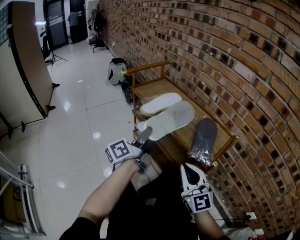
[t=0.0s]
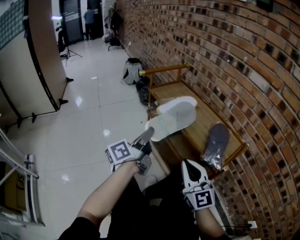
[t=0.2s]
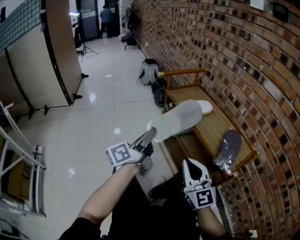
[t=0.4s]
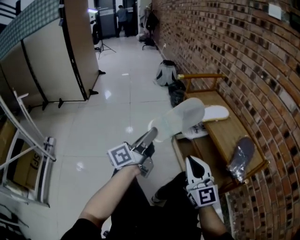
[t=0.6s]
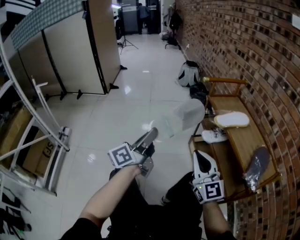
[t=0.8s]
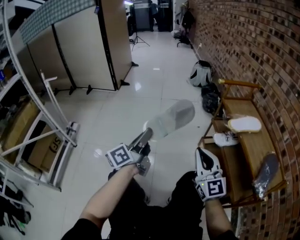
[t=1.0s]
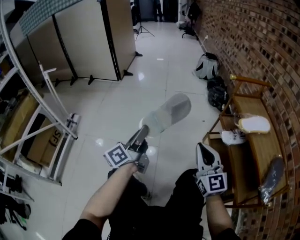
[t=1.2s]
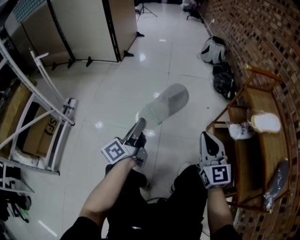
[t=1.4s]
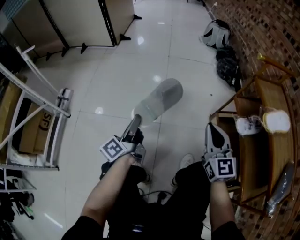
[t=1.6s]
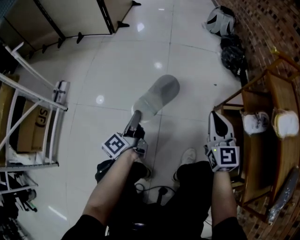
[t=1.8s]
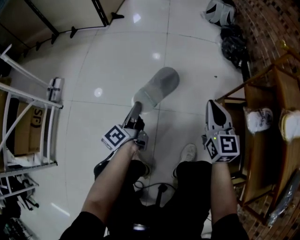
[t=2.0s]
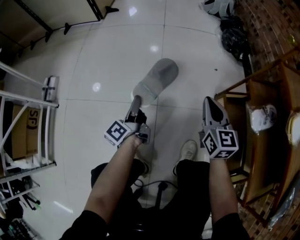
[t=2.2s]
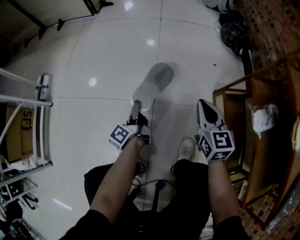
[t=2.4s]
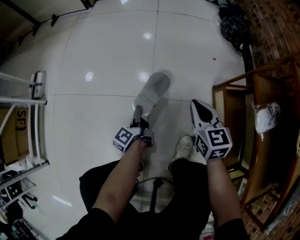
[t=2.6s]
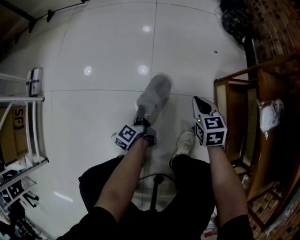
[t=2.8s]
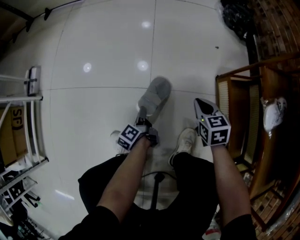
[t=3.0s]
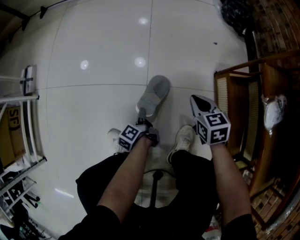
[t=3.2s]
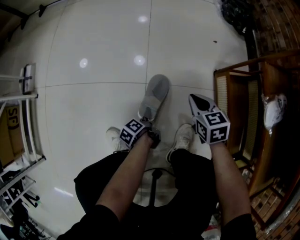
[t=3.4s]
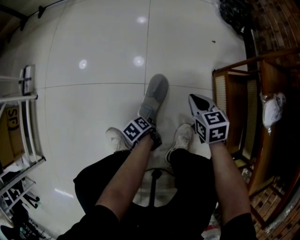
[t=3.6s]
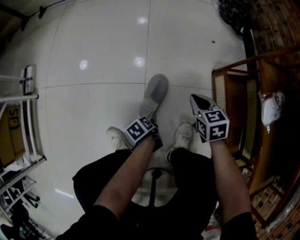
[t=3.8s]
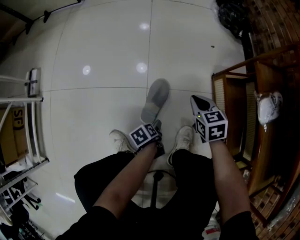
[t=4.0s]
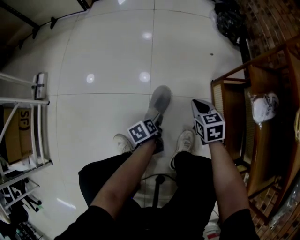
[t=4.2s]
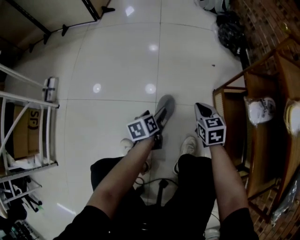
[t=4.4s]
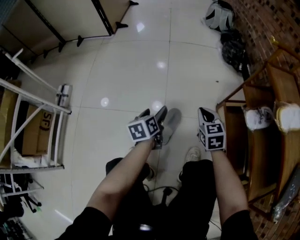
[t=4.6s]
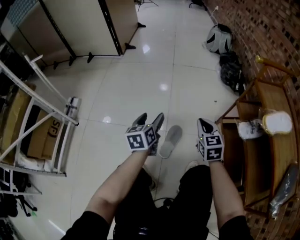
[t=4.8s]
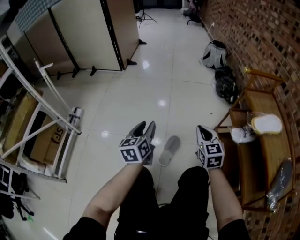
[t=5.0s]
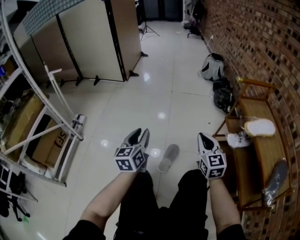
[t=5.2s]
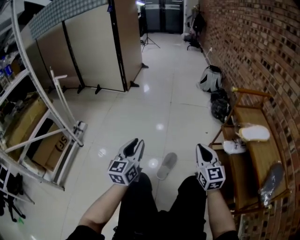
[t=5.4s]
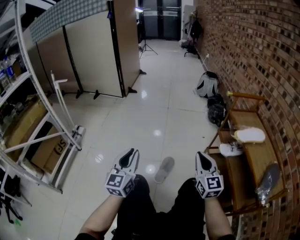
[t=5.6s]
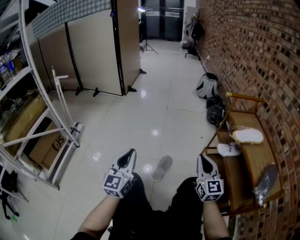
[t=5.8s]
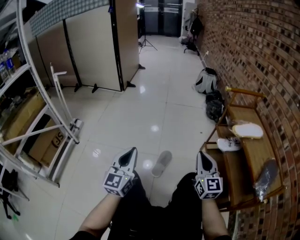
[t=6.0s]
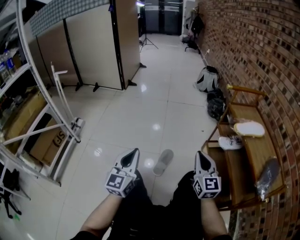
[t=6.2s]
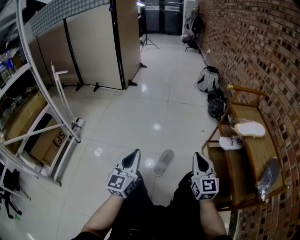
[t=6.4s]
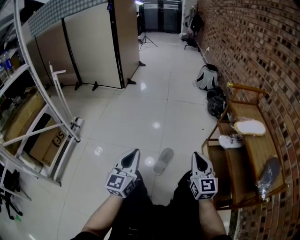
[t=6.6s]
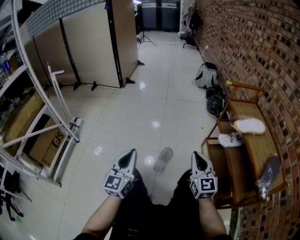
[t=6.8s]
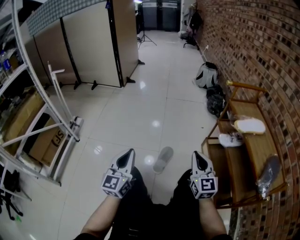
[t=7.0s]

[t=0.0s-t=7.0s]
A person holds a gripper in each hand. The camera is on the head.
t=0.0s to t=1.4s: The left gripper moves roughly 50 cm, and rotates about 40 degrees. Meanwhile the right gripper ends up some 35 cm from where it was, and rotates approximately 30 degrees.
t=1.4s to t=2.8s: The left gripper heads downward, covering approximately 40 cm, and tilts its fingers roughly 40 degrees downward, while the right gripper moves downward and forward, approximately 40 cm, and tilts its fingers roughly 40 degrees downward.
t=2.8s to t=4.2s: The left gripper travels to the right by roughly 5 cm, swivels about 40 degrees, and opens up.
t=4.2s to t=5.6s: The left gripper heads upward, covering some 50 cm, angles its fingers upward, by some 60 degrees, and closes its fingers. Meanwhile the right gripper shifts some 40 cm upward and backward, and tips its fingers upward by approximately 50 degrees.
t=5.6s to t=7.0s: The grippers move only a little.

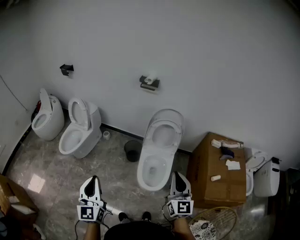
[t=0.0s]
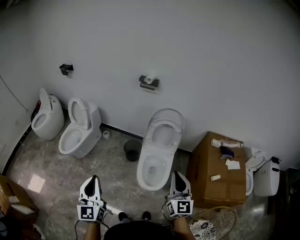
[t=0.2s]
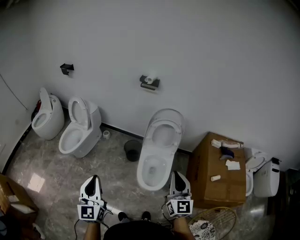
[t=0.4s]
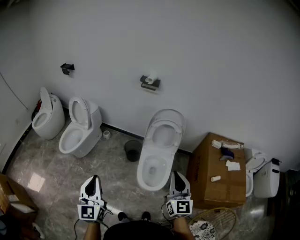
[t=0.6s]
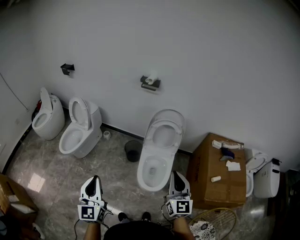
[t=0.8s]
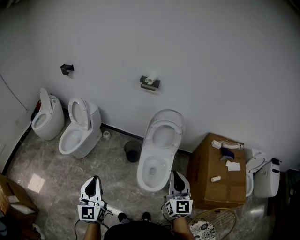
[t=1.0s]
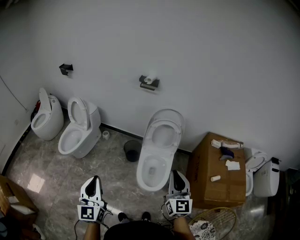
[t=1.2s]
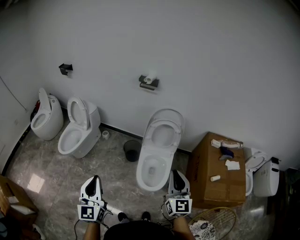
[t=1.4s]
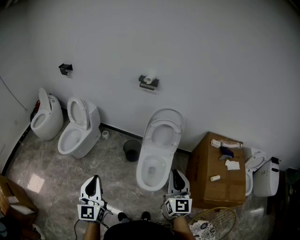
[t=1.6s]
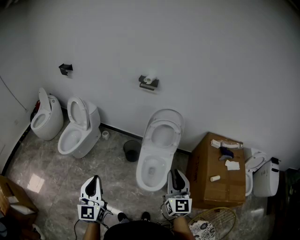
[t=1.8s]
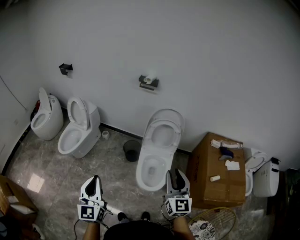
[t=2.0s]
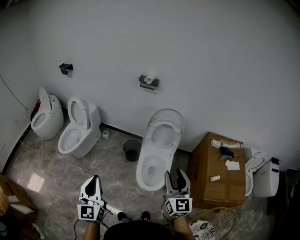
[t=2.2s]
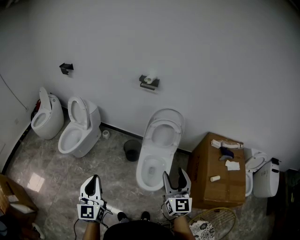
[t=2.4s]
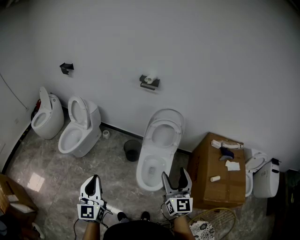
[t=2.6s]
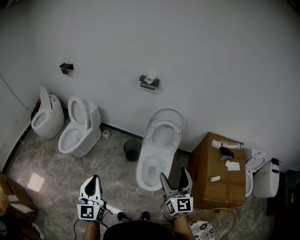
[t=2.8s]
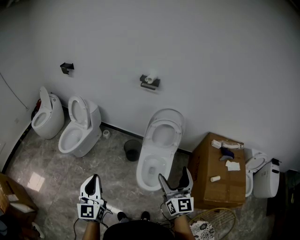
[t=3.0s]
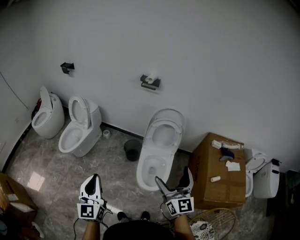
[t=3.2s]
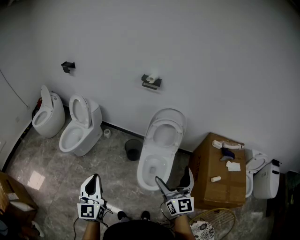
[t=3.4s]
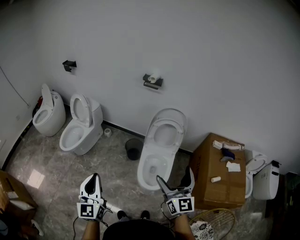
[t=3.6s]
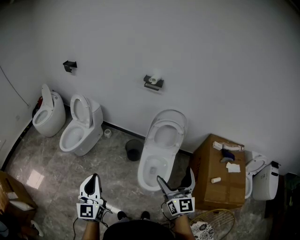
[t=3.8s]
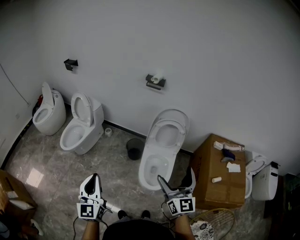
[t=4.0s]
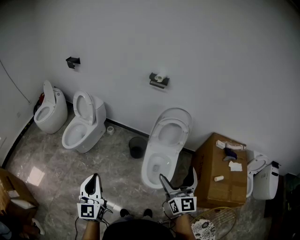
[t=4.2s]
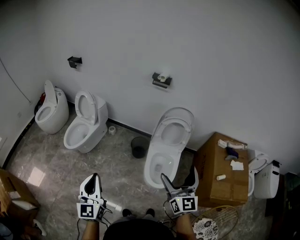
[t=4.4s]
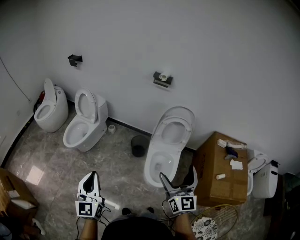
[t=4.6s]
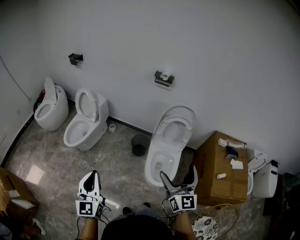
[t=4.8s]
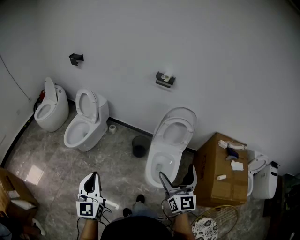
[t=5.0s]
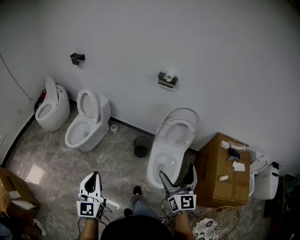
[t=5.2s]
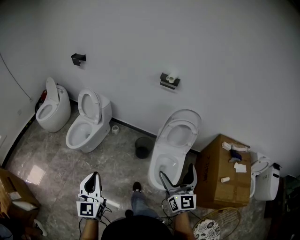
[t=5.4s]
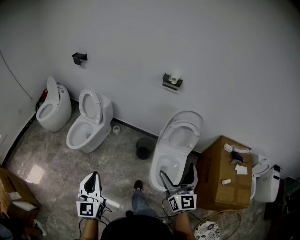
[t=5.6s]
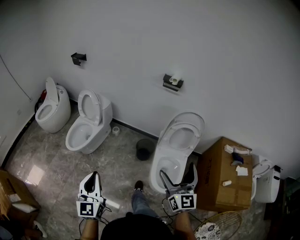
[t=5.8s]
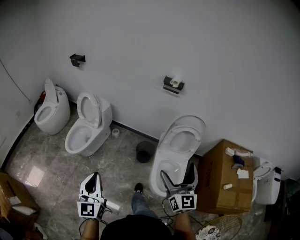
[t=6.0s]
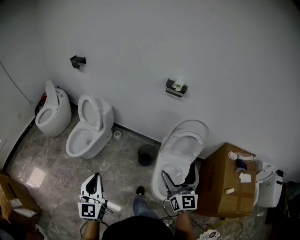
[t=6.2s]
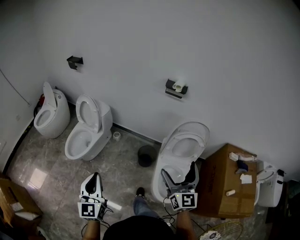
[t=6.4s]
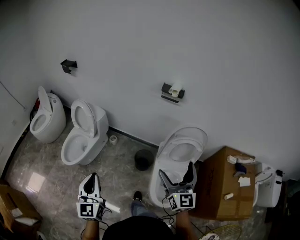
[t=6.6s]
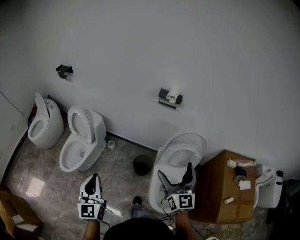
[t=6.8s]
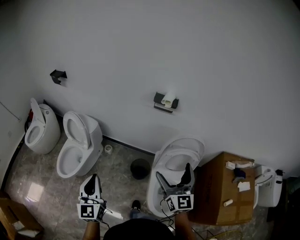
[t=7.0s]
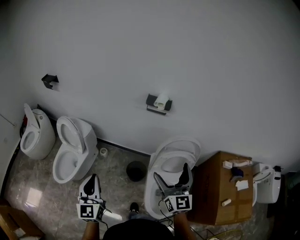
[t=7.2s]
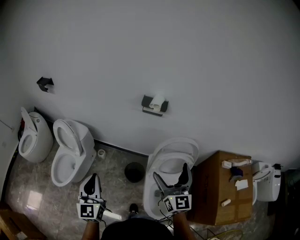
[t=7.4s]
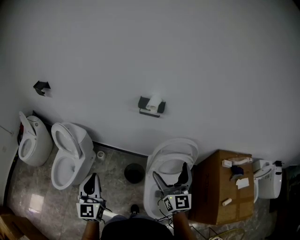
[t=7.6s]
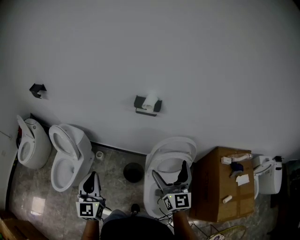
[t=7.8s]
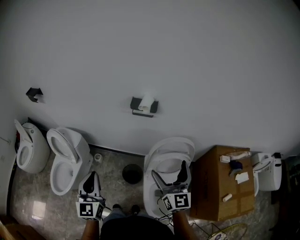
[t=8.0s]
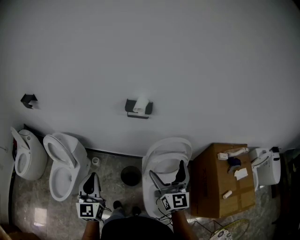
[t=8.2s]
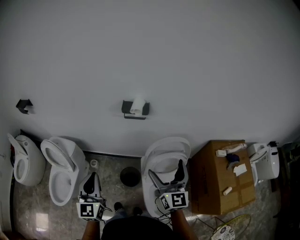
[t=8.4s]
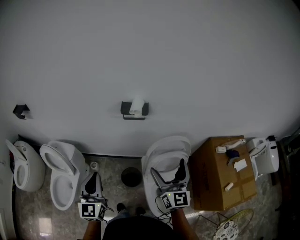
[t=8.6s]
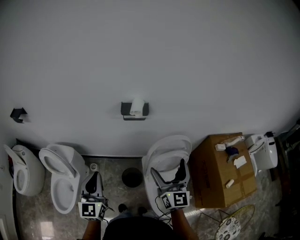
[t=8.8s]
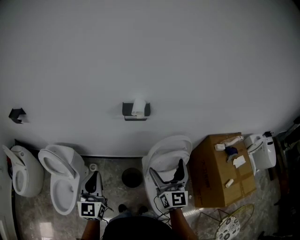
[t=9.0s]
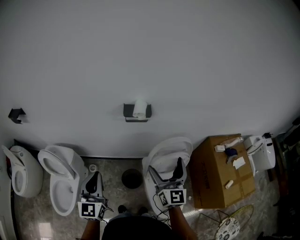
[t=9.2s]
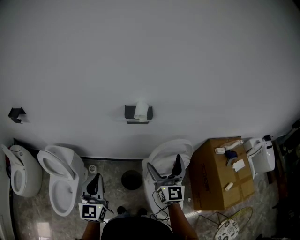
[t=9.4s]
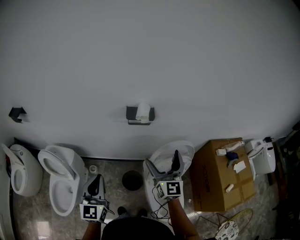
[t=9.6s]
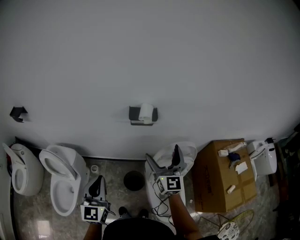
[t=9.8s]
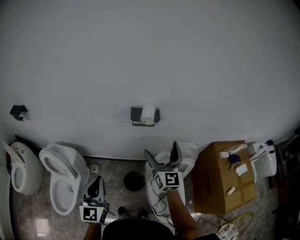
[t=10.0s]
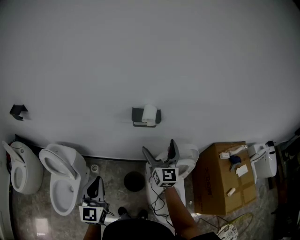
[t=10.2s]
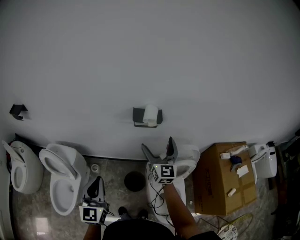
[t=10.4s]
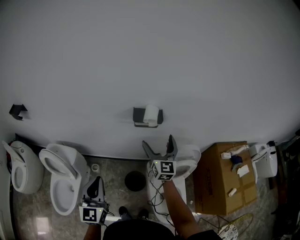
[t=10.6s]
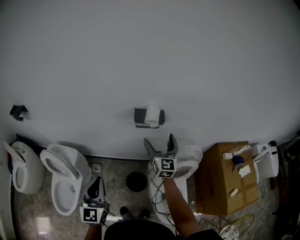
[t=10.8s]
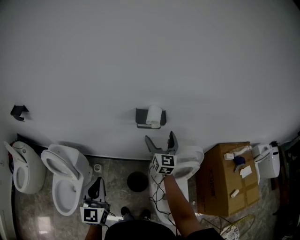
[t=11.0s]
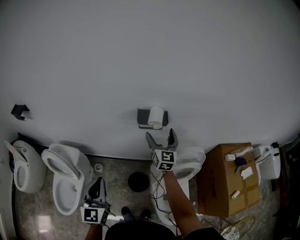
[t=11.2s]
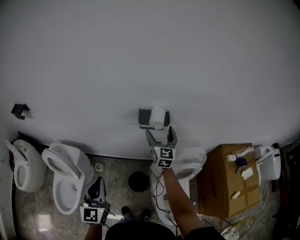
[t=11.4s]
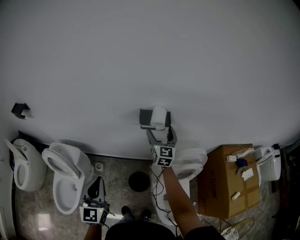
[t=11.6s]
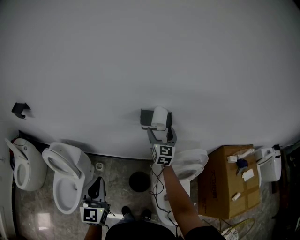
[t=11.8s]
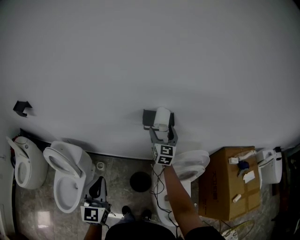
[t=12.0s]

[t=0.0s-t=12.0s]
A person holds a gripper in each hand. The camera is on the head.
t=0.0s to t=1.6s: There are only small adjustments of the grippers.
t=1.6s to t=3.0s: The right gripper opens.
t=3.0s to t=4.4s: Both grippers move to the left, about 10 cm.
t=4.4s to t=6.0s: Both grippers travel together forward and to the left, roughly 15 cm.
t=6.0s to t=7.6s: The two grippers go some 30 cm forward.
t=7.6s to t=9.0s: The left gripper heads forward, covering roughly 15 cm. The right gripper heads forward, covering roughly 5 cm.
t=9.0s to t=10.4s: The right gripper heads forward and to the left, covering some 20 cm.
t=10.4s to t=12.0s: The right gripper moves forward and downward, roughly 15 cm.

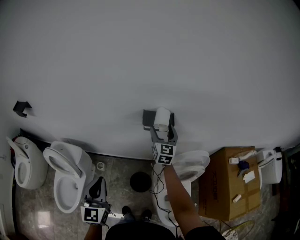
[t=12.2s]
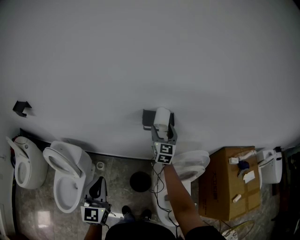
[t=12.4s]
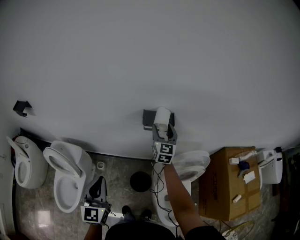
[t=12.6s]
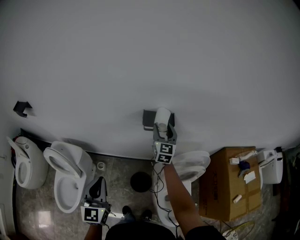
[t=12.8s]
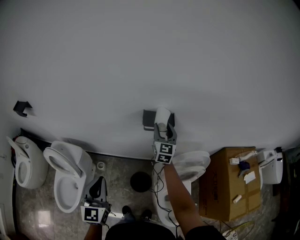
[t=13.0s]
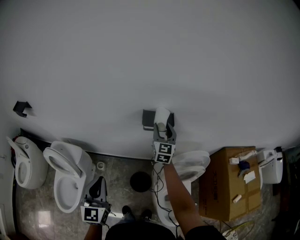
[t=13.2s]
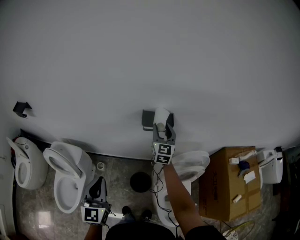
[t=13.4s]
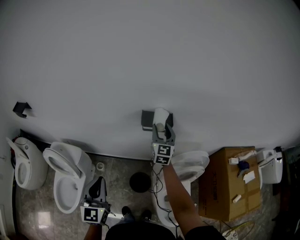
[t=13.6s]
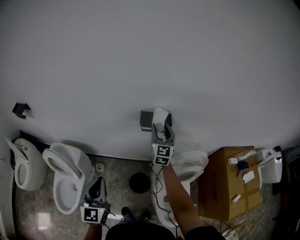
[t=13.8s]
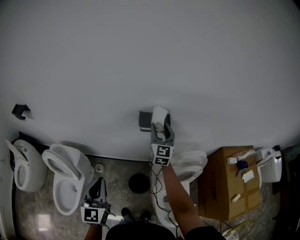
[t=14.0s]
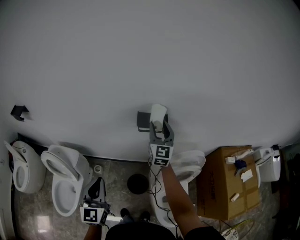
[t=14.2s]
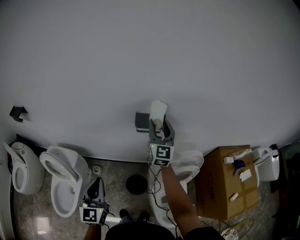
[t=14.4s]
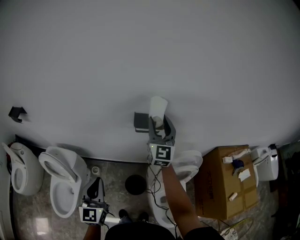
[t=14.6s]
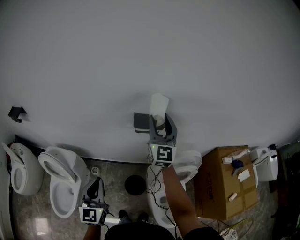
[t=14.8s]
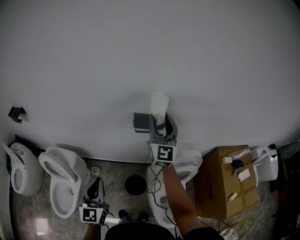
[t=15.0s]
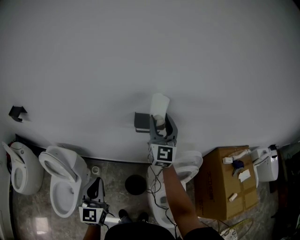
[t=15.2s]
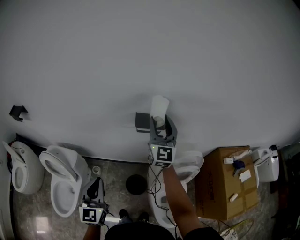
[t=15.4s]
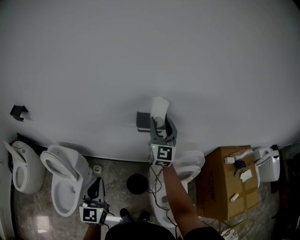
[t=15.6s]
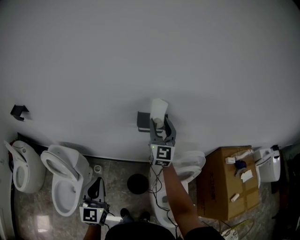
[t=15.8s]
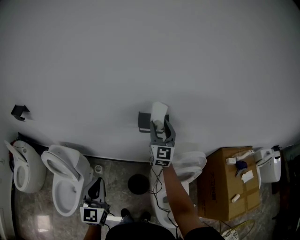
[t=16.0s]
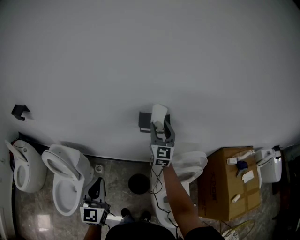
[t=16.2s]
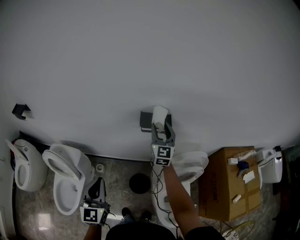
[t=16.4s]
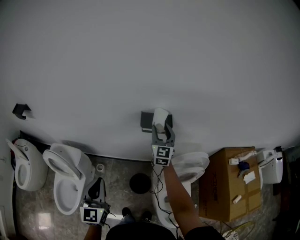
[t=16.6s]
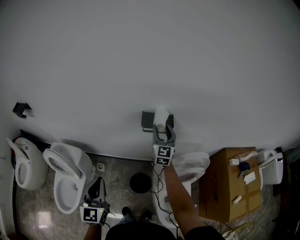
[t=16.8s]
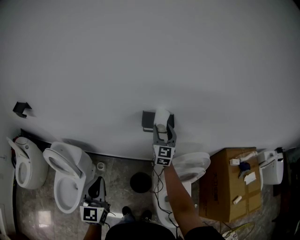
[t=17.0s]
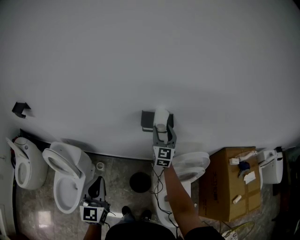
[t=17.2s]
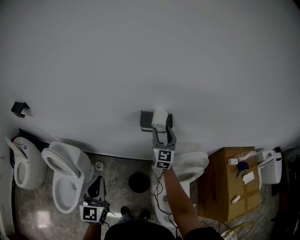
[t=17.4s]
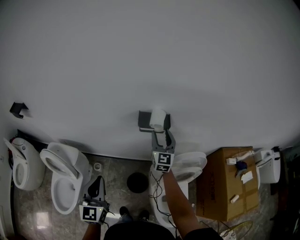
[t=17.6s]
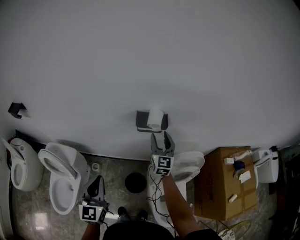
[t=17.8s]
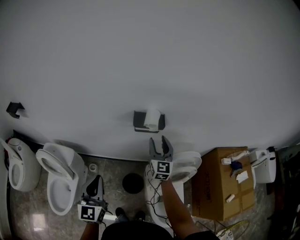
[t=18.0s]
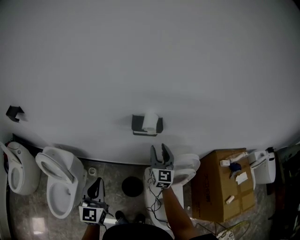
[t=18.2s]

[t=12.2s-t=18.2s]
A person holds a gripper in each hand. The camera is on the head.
t=12.2s to t=13.8s: The grippers move only a little.
t=13.8s to t=15.2s: The right gripper moves upward, some 15 cm.
t=15.2s to t=16.6s: The right gripper moves downward, approximately 15 cm.
t=16.6s to t=18.2s: The right gripper heads backward, covering approximately 10 cm.
